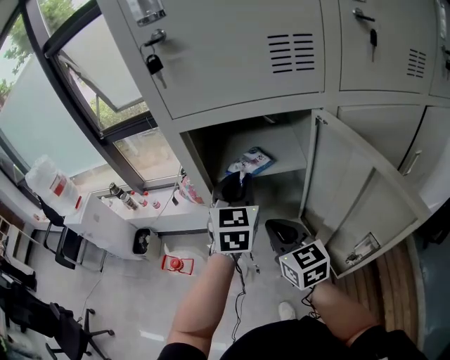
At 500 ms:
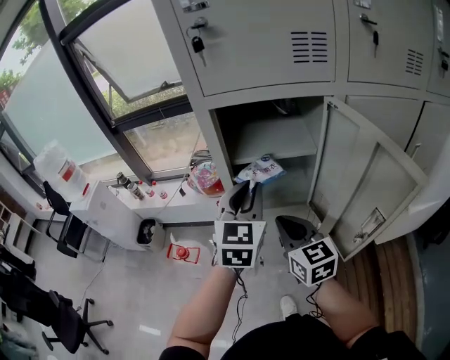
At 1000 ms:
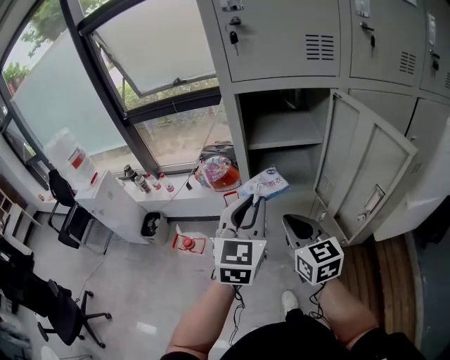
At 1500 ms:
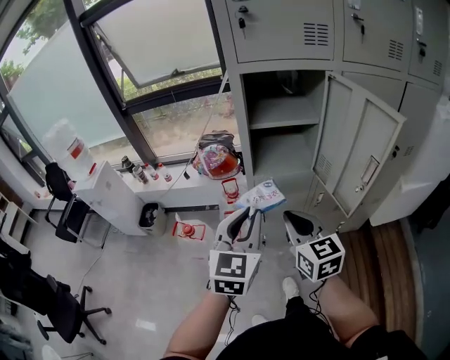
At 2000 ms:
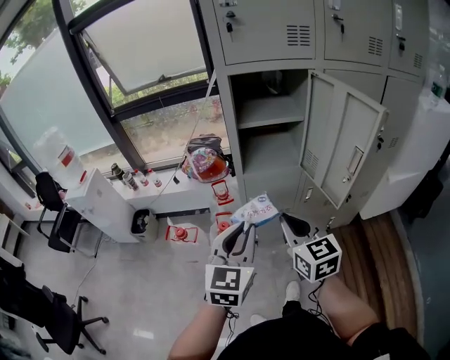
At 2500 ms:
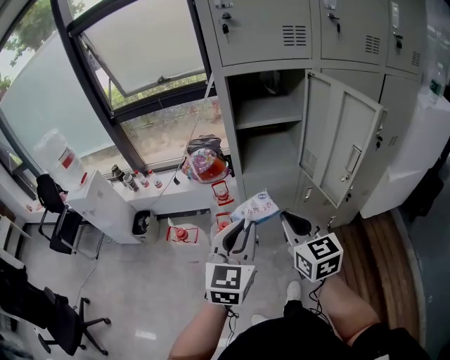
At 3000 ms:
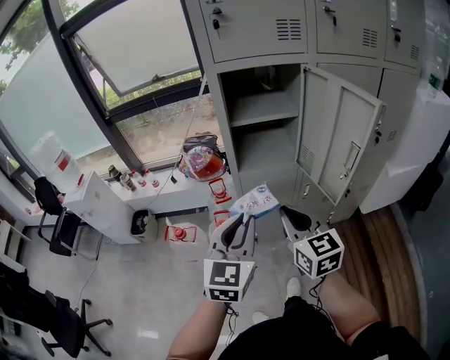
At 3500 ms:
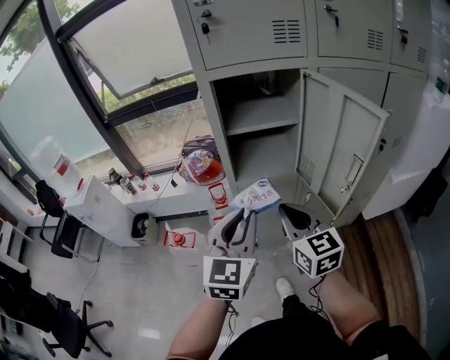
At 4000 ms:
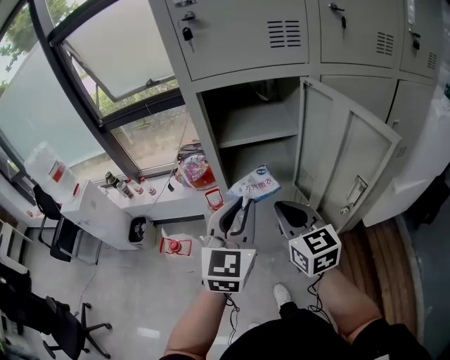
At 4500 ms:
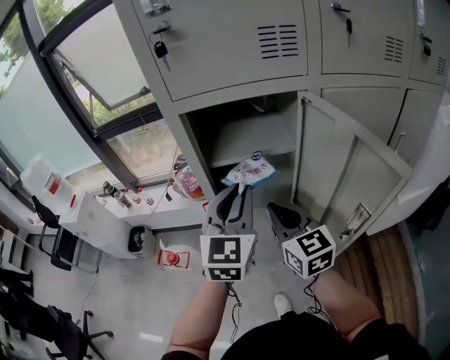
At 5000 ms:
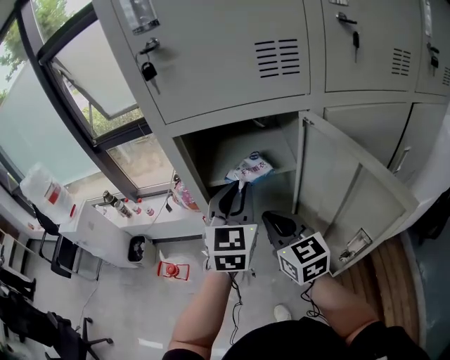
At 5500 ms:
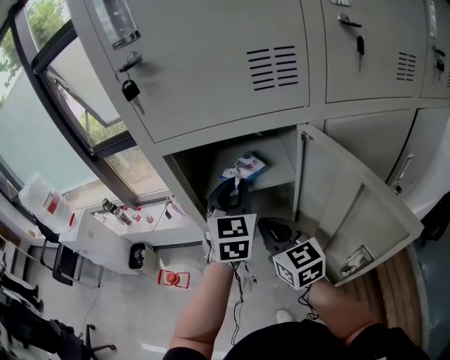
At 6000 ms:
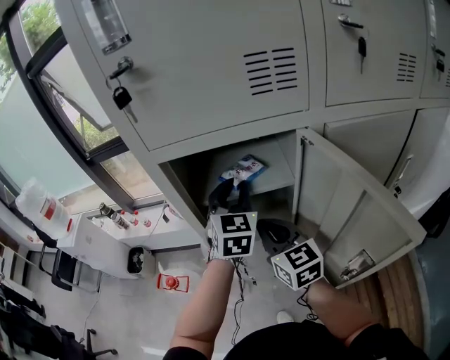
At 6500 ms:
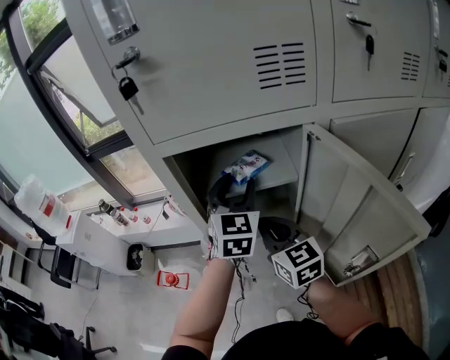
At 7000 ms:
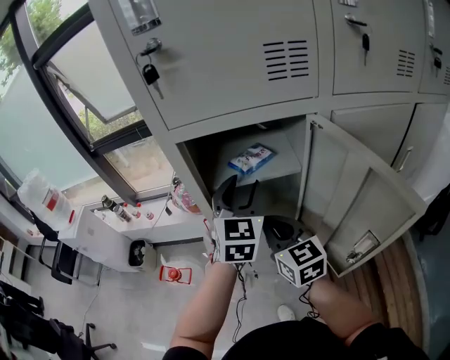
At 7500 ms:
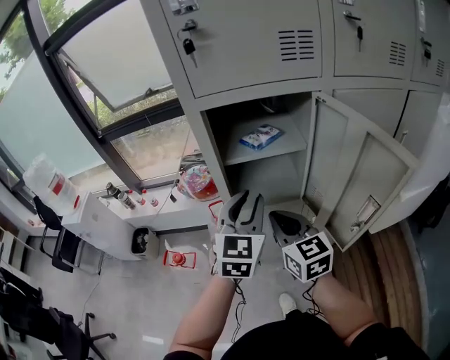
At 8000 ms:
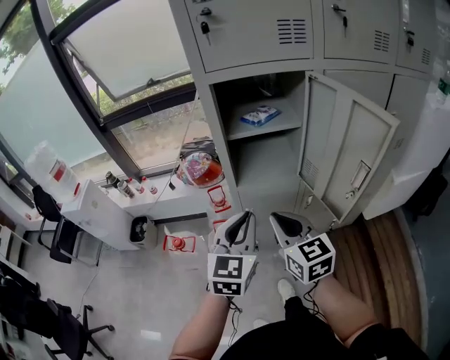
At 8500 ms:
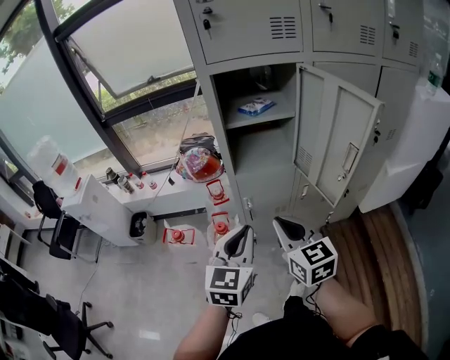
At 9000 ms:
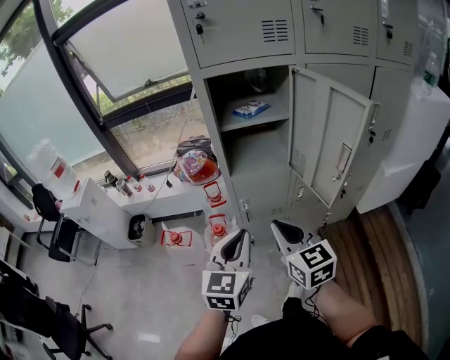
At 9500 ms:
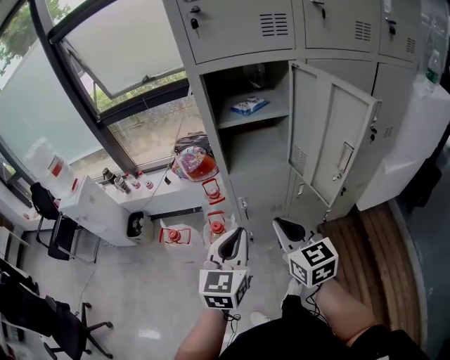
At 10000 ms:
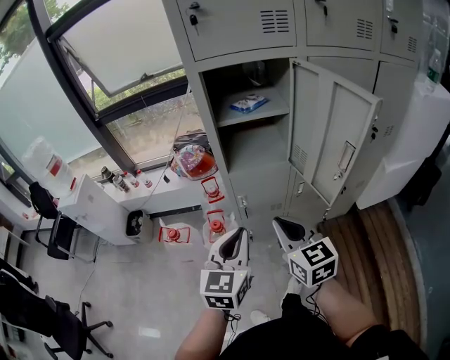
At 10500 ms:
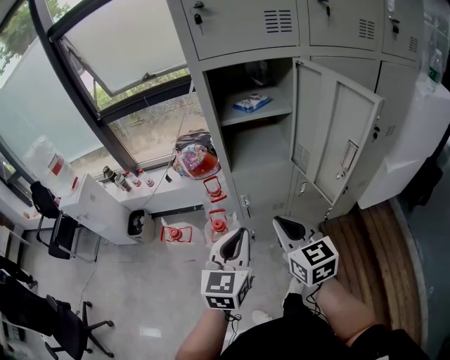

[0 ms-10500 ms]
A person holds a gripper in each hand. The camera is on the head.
0 ms to 2000 ms: The right gripper is displaced backward by roughly 20 cm, while the left gripper shifts roughly 35 cm backward.
2000 ms to 4000 ms: The right gripper moves forward, approximately 10 cm; the left gripper is displaced forward, to the right and upward by approximately 15 cm.
4000 ms to 6500 ms: The left gripper travels forward by about 25 cm, and opens. Meanwhile the right gripper moves forward, approximately 15 cm.
6500 ms to 8500 ms: The two grippers go approximately 30 cm backward. The left gripper closes its fingers.
8500 ms to 10500 ms: There are only small adjustments of the grippers.

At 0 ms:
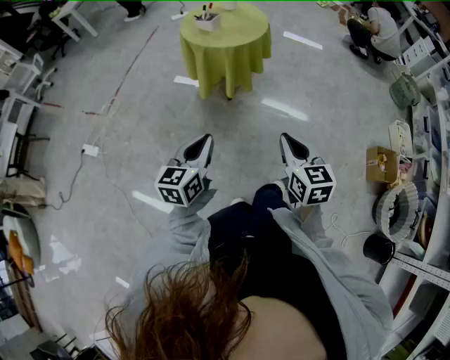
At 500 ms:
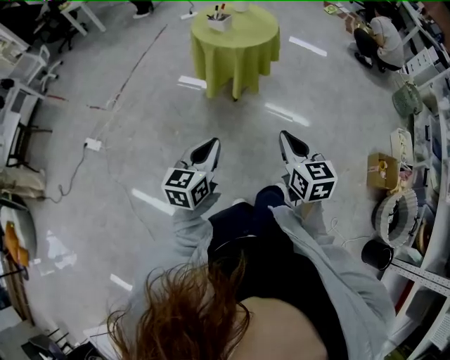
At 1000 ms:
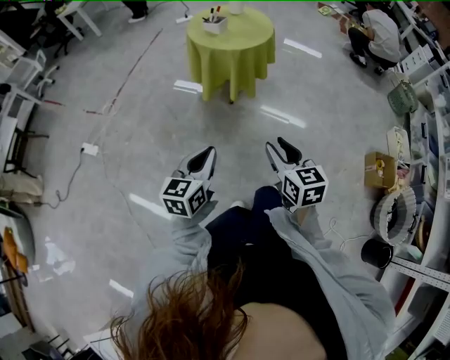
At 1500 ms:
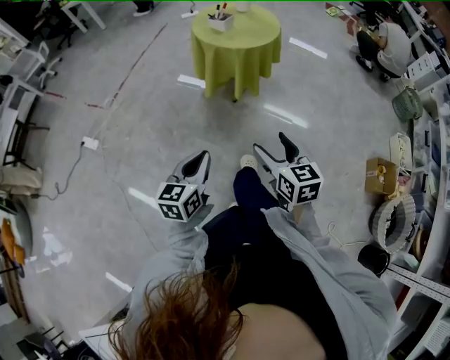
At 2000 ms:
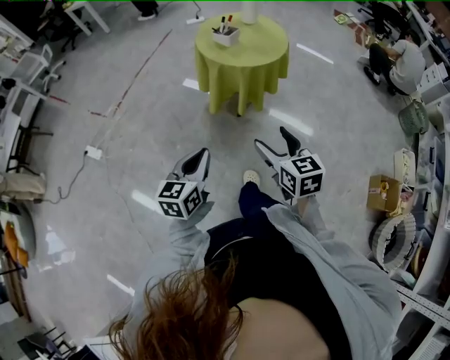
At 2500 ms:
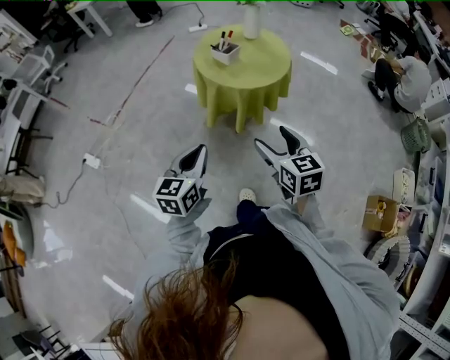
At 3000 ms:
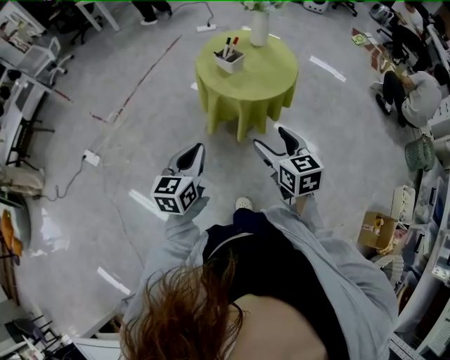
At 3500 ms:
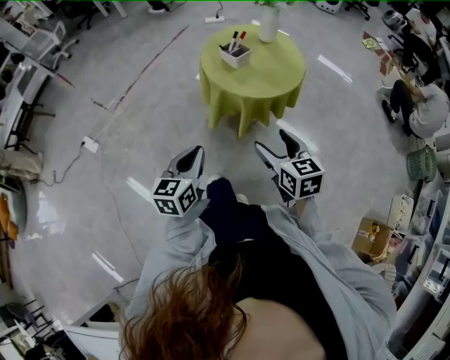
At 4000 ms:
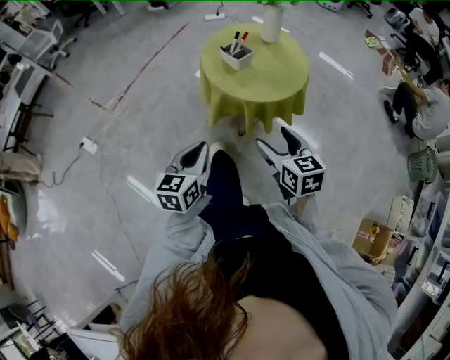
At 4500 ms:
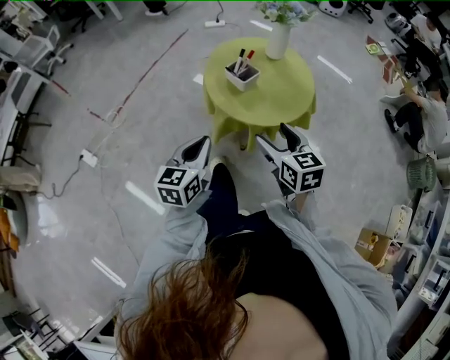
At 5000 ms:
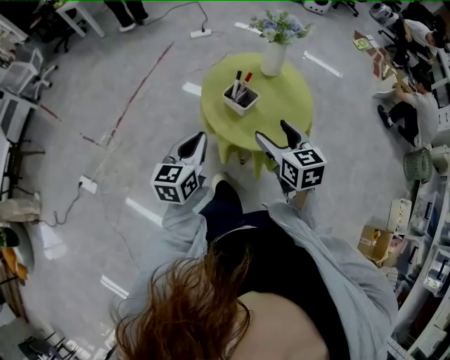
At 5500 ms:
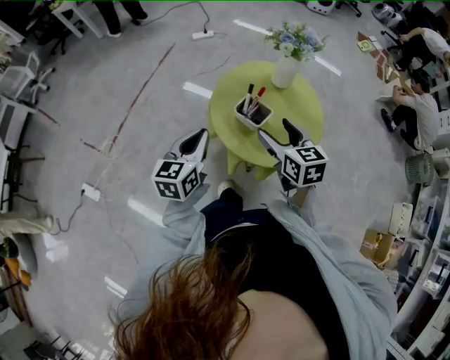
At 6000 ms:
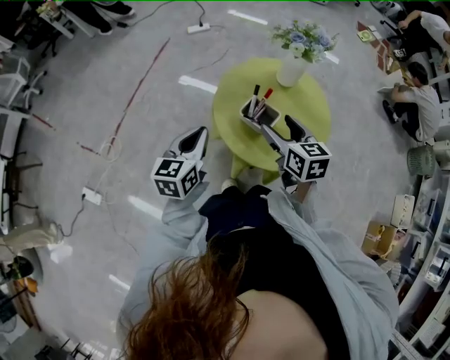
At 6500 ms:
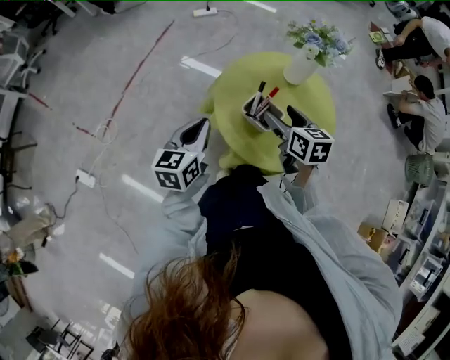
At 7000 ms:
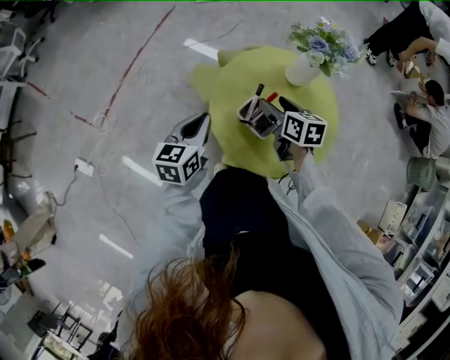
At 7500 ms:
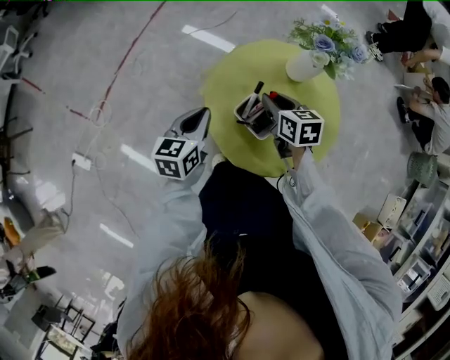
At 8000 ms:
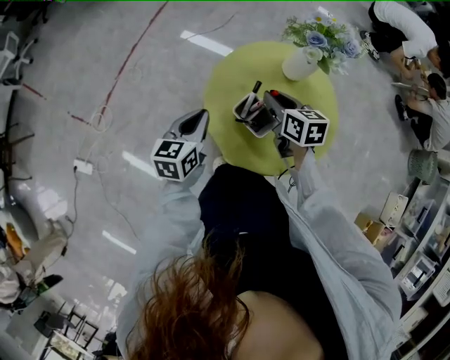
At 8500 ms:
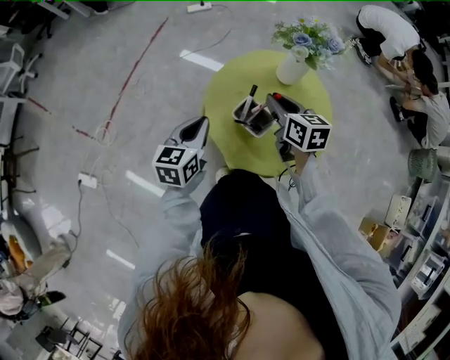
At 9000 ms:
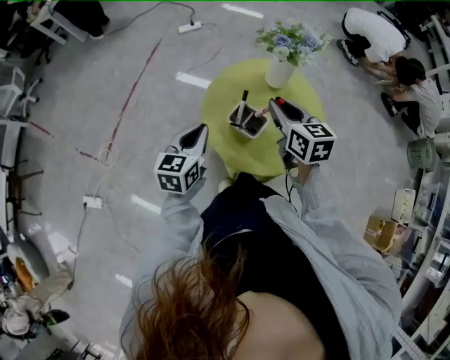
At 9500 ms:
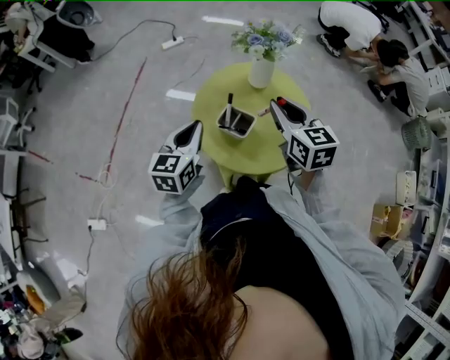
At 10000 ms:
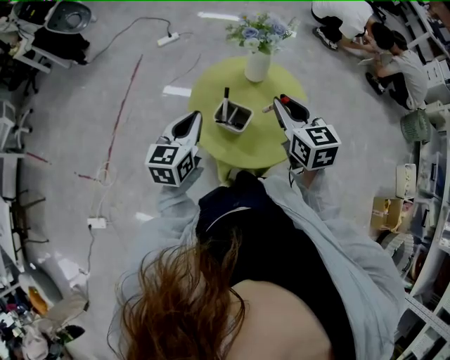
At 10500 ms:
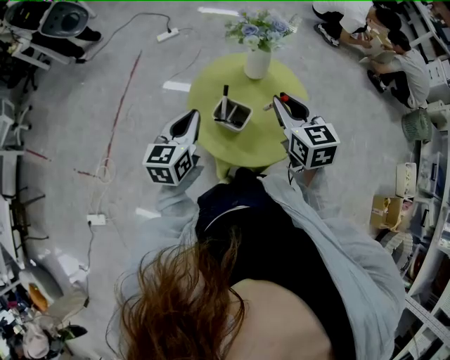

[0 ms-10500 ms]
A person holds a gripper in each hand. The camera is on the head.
0 ms to 2000 ms: The right gripper is displaced forward and to the left by approximately 15 cm, and opens up. Meanwhile the left gripper goes about 5 cm forward.
2000 ms to 4000 ms: Both grippers move forward, about 20 cm.
4000 ms to 6500 ms: The grippers both shift forward by some 40 cm.
6500 ms to 8500 ms: The right gripper heads forward, covering approximately 5 cm, and closes its fingers.
8500 ms to 10500 ms: The left gripper heads upward, covering about 5 cm, while the right gripper shifts approximately 15 cm upward, to the right and backward, and swivels some 20 degrees.

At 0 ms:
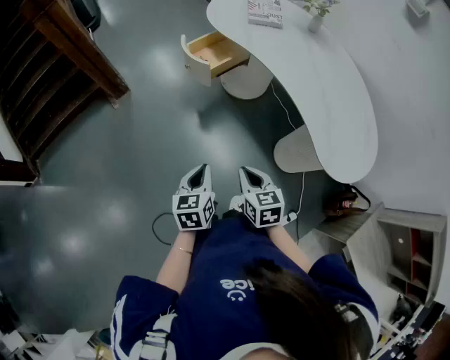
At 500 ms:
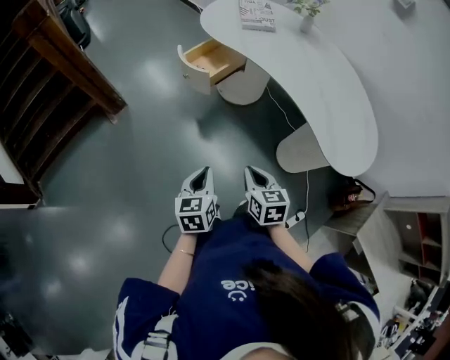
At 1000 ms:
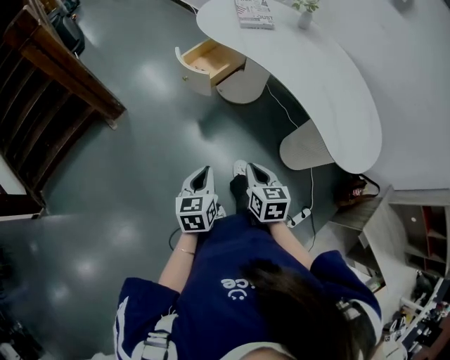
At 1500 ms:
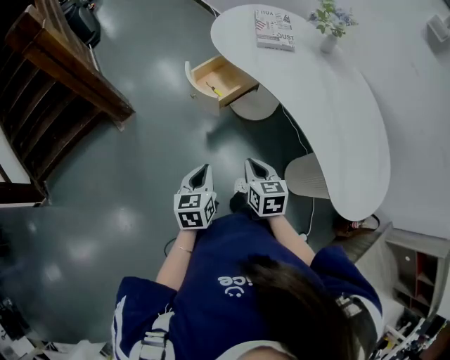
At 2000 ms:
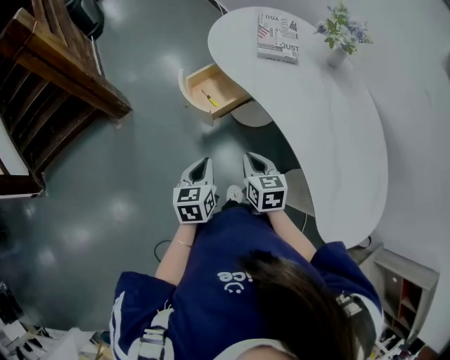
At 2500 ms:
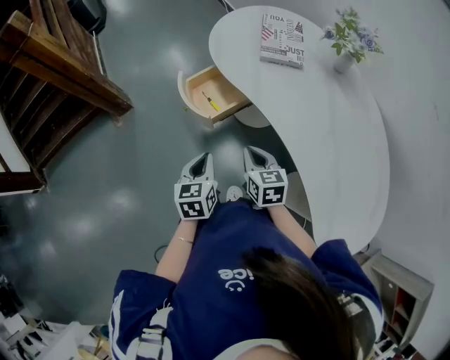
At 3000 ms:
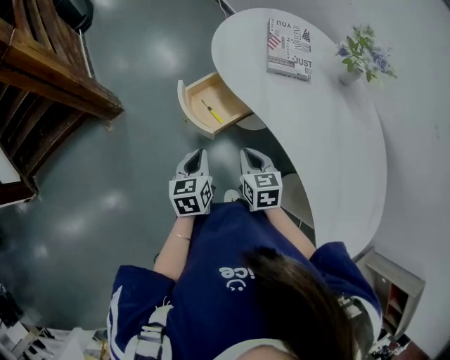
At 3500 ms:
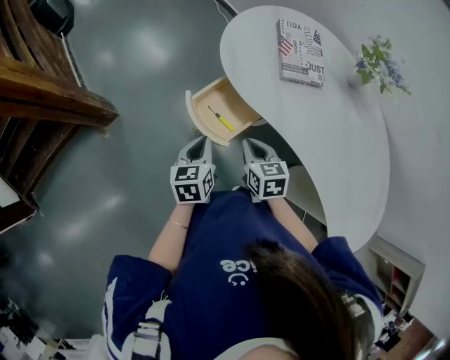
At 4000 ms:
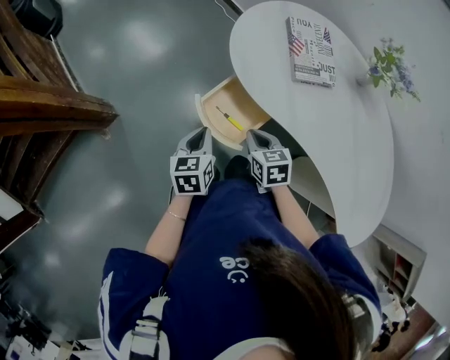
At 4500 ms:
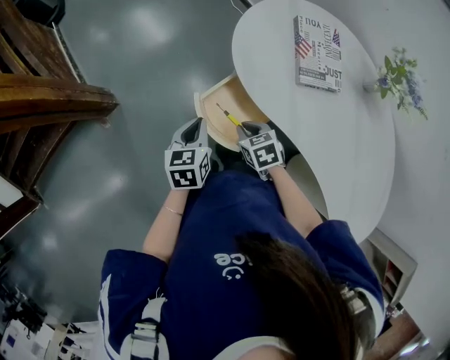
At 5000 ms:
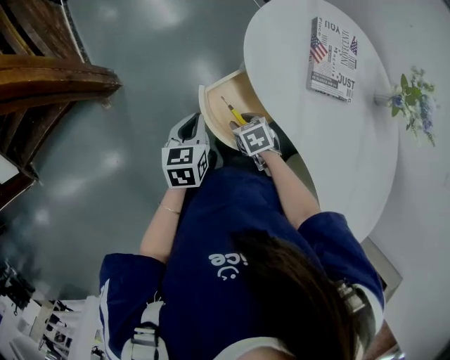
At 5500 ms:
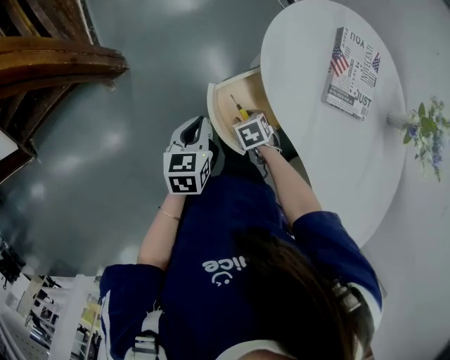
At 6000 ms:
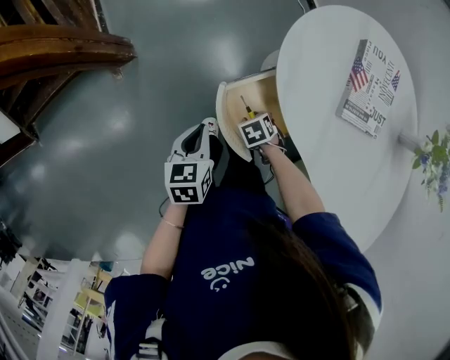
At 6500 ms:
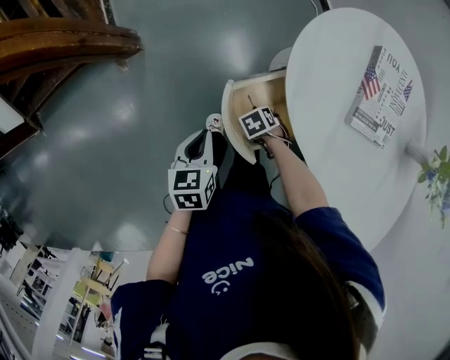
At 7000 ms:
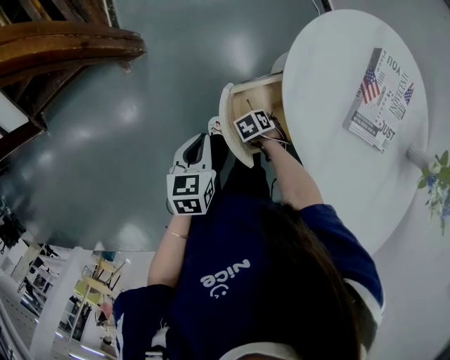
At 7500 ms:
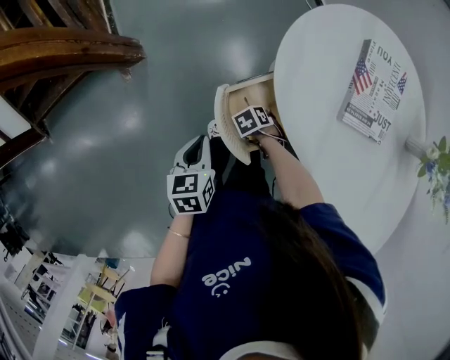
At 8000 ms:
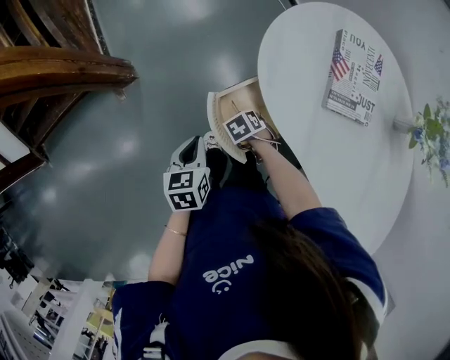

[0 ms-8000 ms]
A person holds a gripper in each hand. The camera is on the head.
0 ms to 2000 ms: The two grippers go roughly 30 cm forward.
2000 ms to 4000 ms: Both grippers travel together forward and to the left, approximately 30 cm.
4000 ms to 6000 ms: The left gripper changes place by roughly 5 cm, and swivels about 20 degrees, while the right gripper heads downward, covering roughly 20 cm, tips its fingers downward by roughly 30 degrees, and opens its fingers.
6000 ms to 8000 ms: The grippers stay close to where they were, moving slightly.
